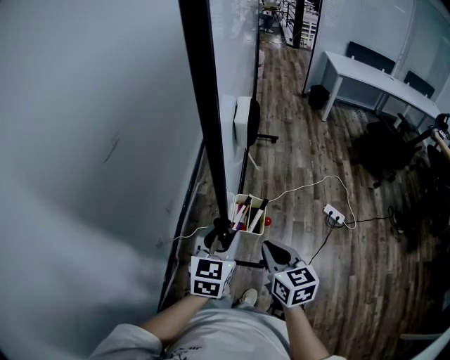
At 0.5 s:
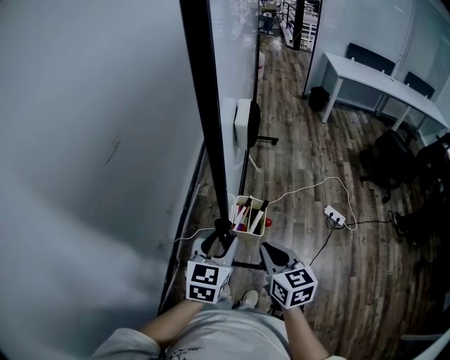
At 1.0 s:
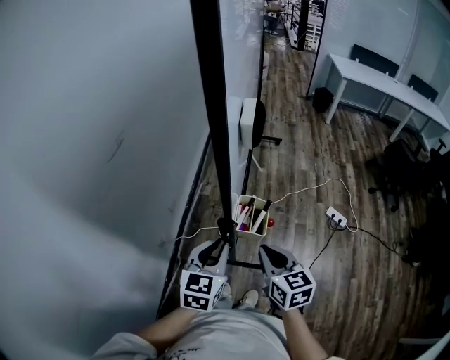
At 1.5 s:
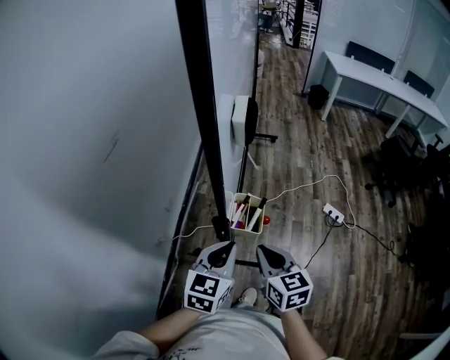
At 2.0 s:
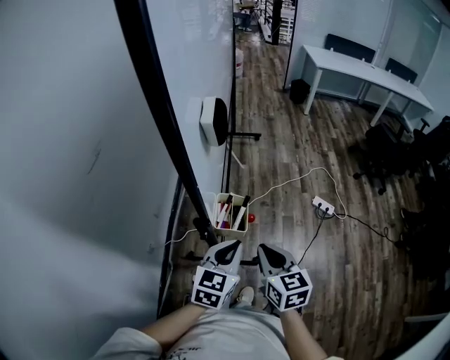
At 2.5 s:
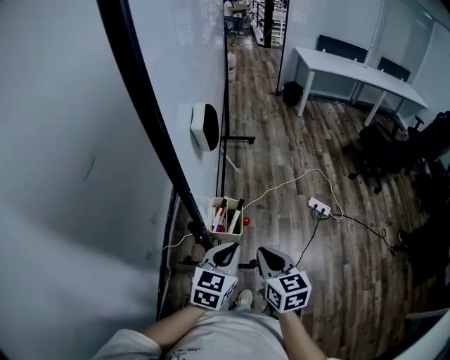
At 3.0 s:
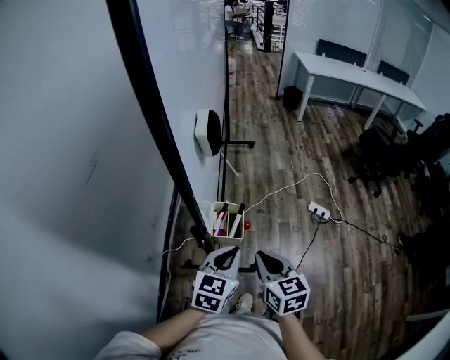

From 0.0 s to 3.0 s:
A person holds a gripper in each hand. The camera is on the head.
From 0.0 s to 1.5 s: The left gripper ends up approximately 5 cm from where it was, and closes.
From 1.5 s to 3.0 s: The left gripper shifts some 5 cm to the right.

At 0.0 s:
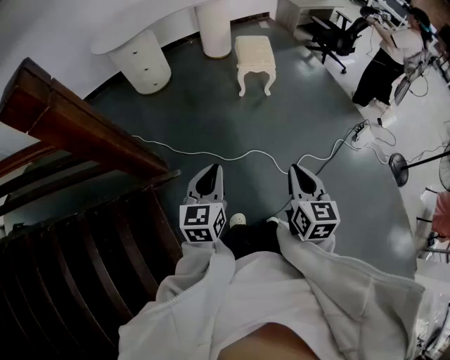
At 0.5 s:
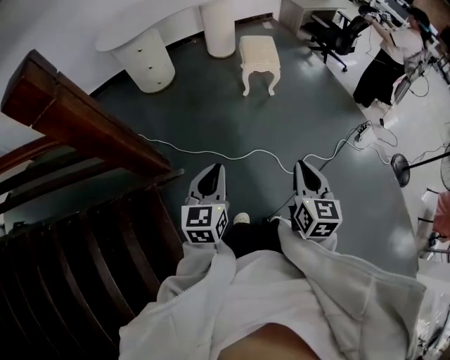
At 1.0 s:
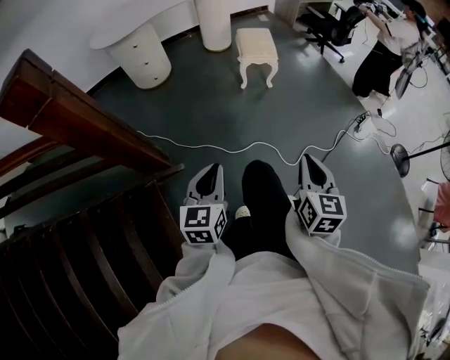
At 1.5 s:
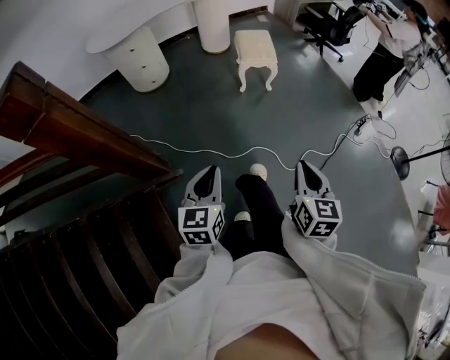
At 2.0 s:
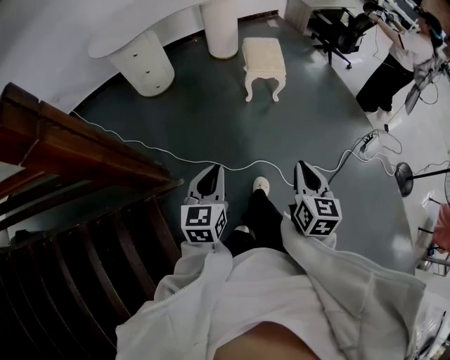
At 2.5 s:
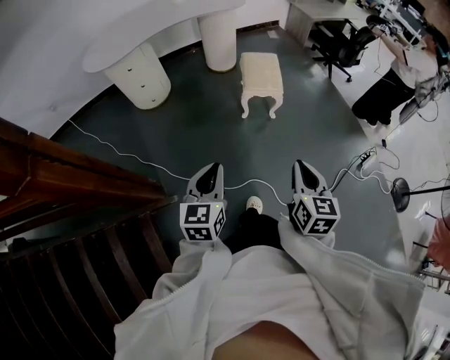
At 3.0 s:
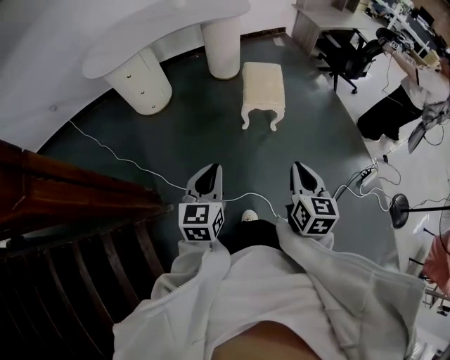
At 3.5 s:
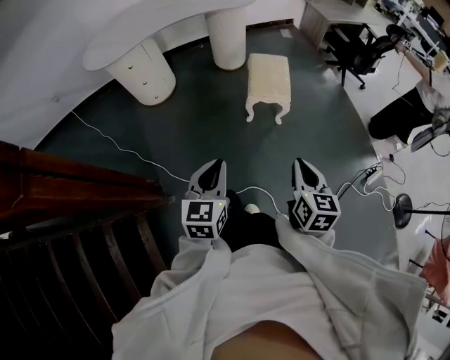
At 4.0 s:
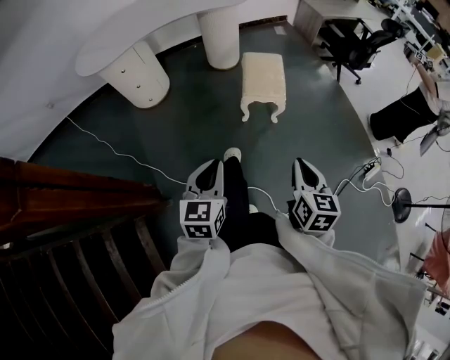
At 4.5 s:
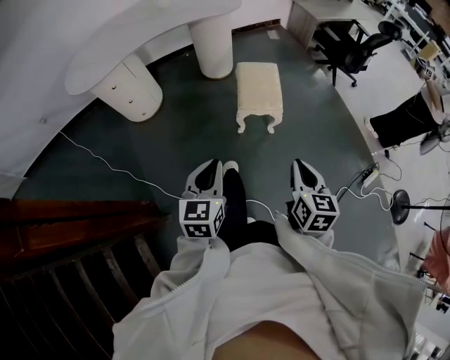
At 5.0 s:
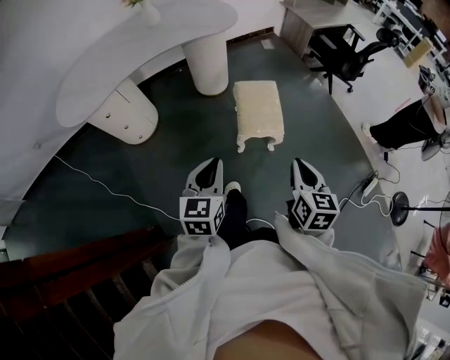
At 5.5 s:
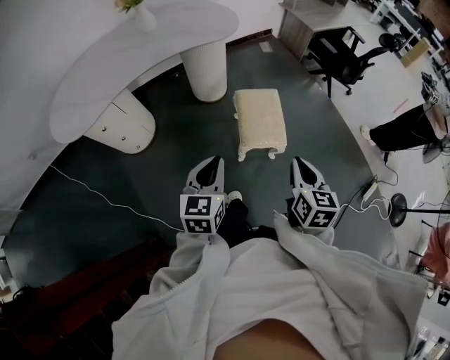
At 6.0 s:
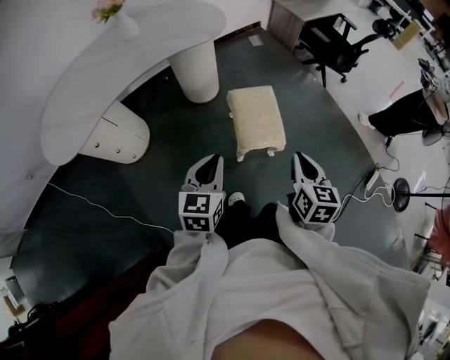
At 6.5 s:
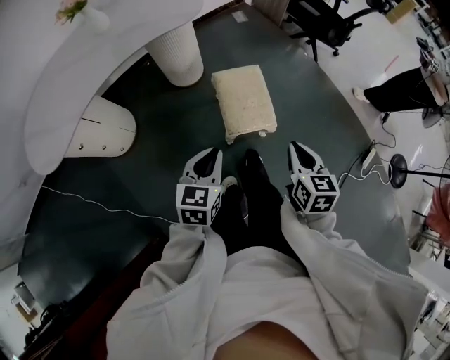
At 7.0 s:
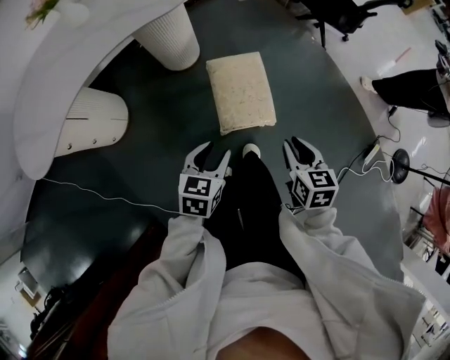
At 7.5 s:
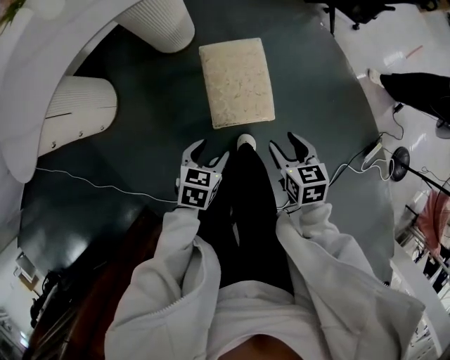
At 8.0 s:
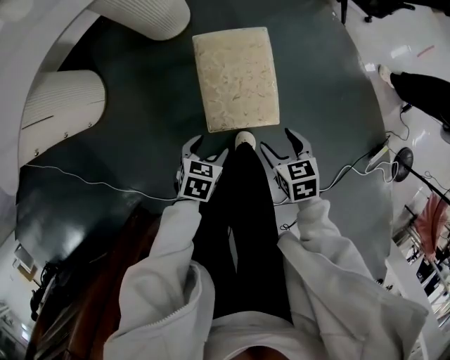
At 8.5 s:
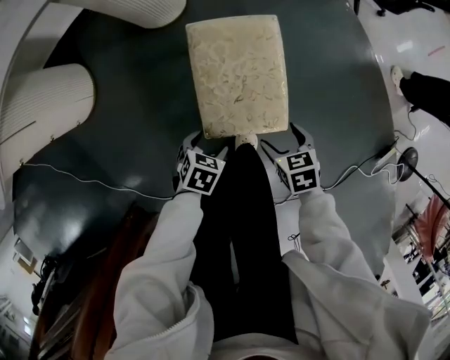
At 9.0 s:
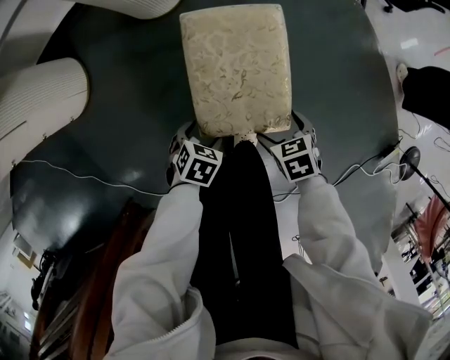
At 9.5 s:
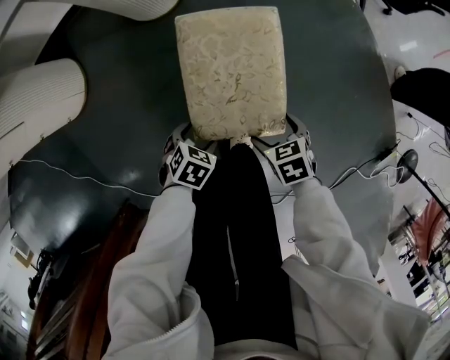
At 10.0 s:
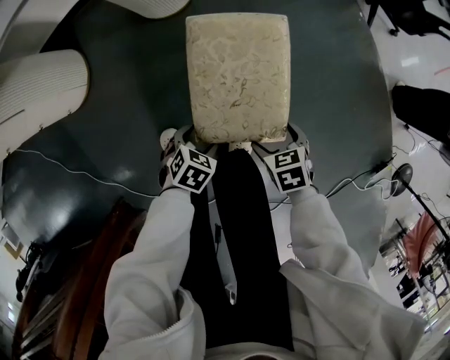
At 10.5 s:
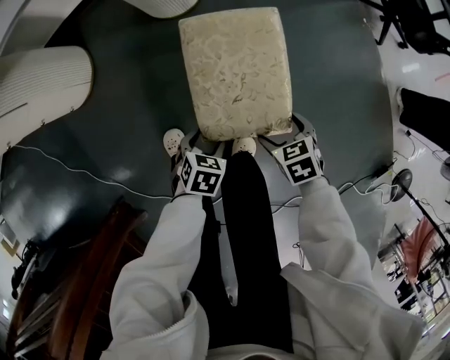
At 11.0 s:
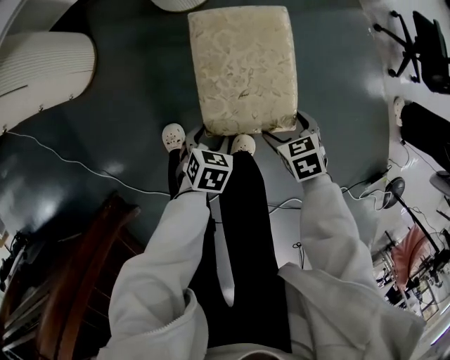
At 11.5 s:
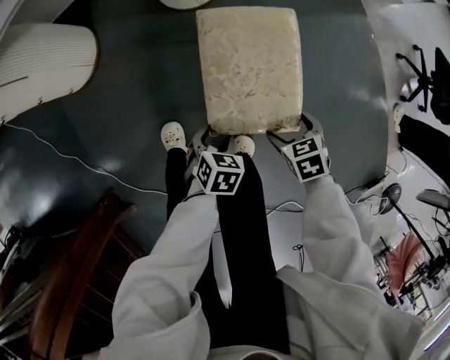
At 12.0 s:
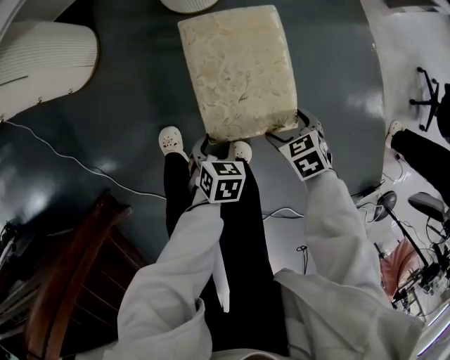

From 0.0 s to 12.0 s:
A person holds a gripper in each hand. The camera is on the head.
From 0.0 s to 2.0 s: Both grippers travel together forward, roughly 10 cm.
From 2.0 s to 4.0 s: The grippers both shift forward by about 25 cm.
From 4.0 s to 6.0 s: The grippers both shift forward by roughly 35 cm.
From 6.0 s to 8.0 s: The left gripper heads downward, covering roughly 35 cm, points its fingers some 40 degrees further downward, and opens, while the right gripper shifts about 35 cm downward and forward, rotates approximately 40 degrees, and opens.
From 8.0 s to 10.0 s: The grippers both shift downward by about 15 cm.
From 10.0 s to 12.0 s: The left gripper changes its angle by approximately 30 degrees. Meanwhile the right gripper ends up about 5 cm from where it was, and turns by about 20 degrees.

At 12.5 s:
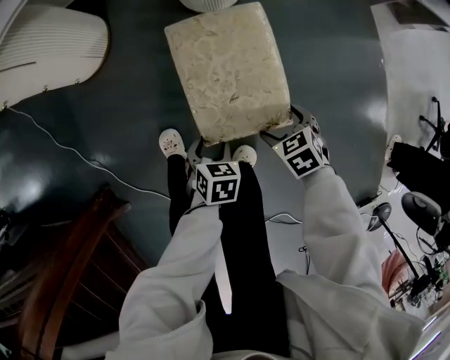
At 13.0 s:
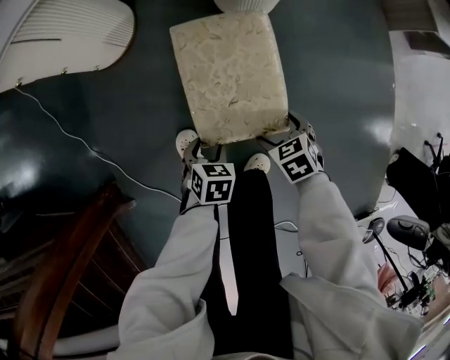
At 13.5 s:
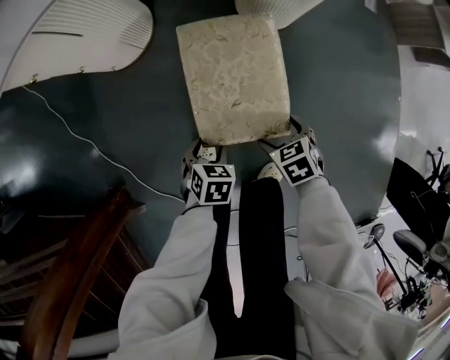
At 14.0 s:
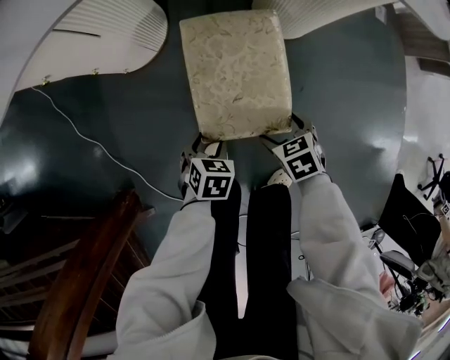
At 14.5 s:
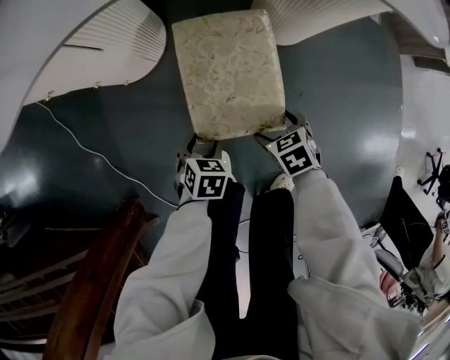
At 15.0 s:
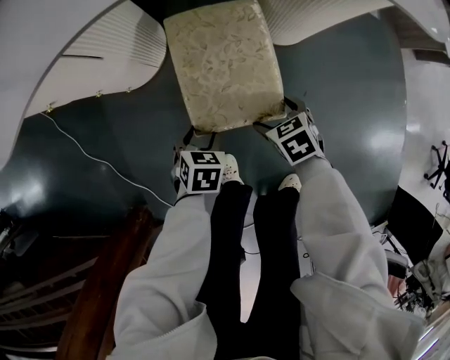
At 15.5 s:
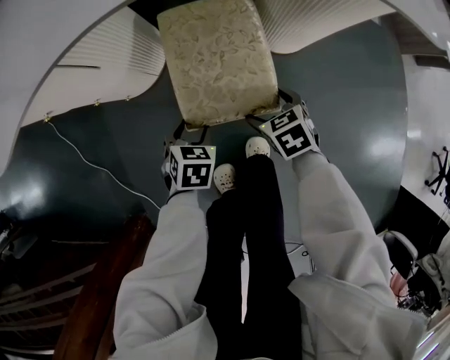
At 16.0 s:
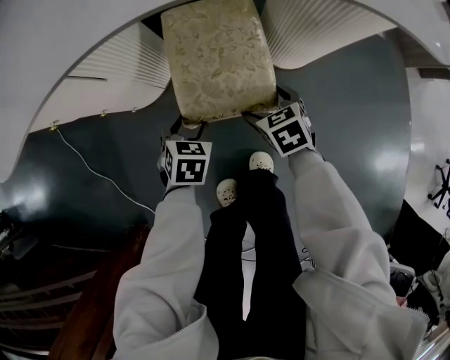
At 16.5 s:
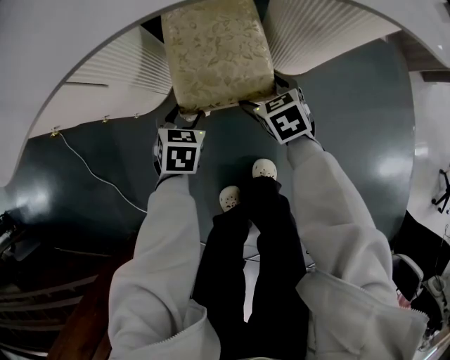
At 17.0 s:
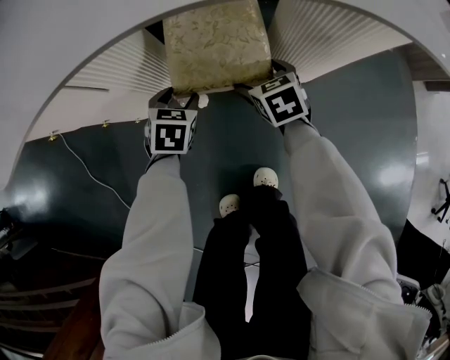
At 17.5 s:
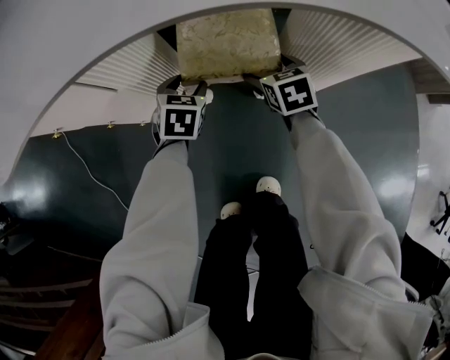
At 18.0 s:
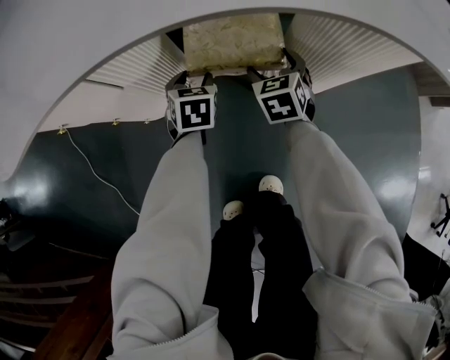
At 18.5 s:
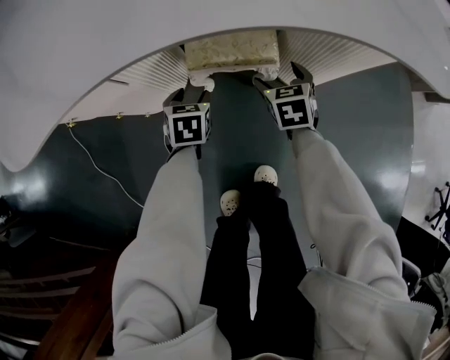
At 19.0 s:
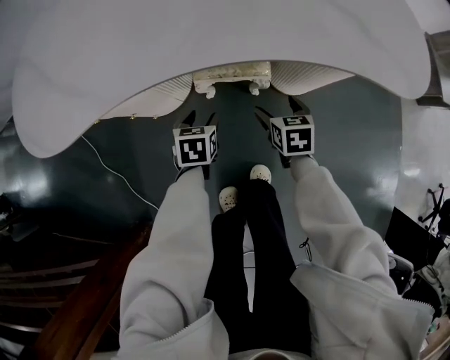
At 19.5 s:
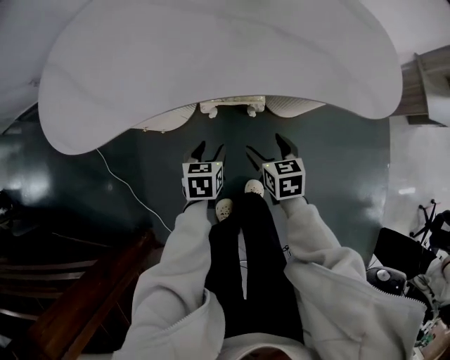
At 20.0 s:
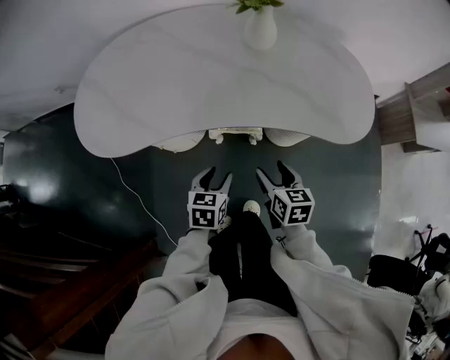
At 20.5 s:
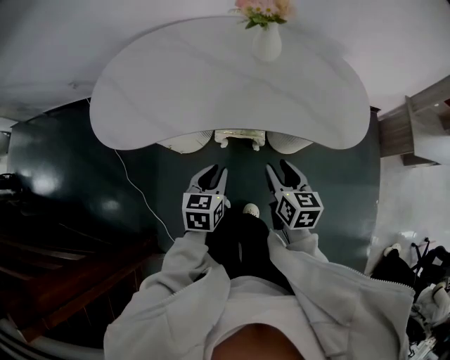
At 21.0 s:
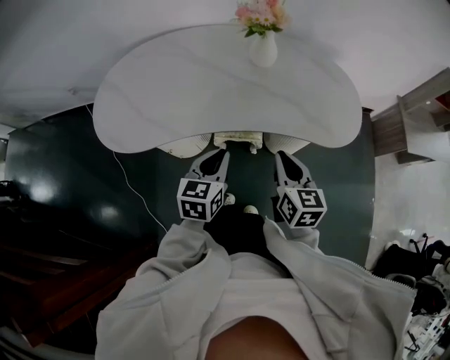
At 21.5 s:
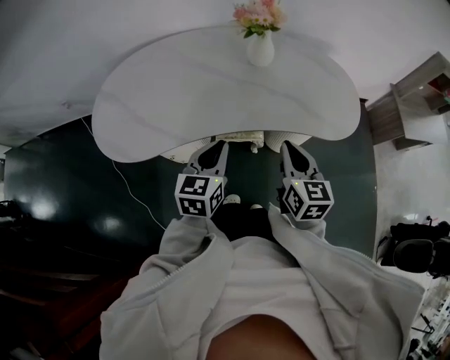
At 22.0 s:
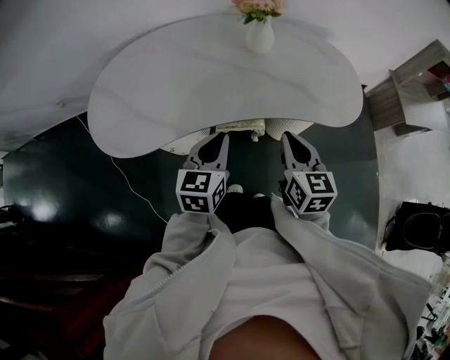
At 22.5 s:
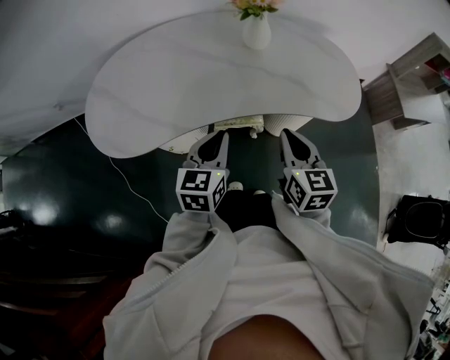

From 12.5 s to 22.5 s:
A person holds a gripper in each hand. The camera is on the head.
From 12.5 s to 14.5 s: The grippers both shift to the left and forward by about 30 cm.
From 14.5 s to 16.5 s: Both grippers move forward, some 20 cm.
From 16.5 s to 18.5 s: The right gripper goes some 10 cm forward and upward. Meanwhile the left gripper goes about 5 cm forward.
From 18.5 s to 20.5 s: Both grippers travel together upward, some 35 cm. The right gripper changes its angle by some 30 degrees, and closes. The left gripper closes its fingers.
From 20.5 s to 22.5 s: The two grippers go approximately 10 cm upward.

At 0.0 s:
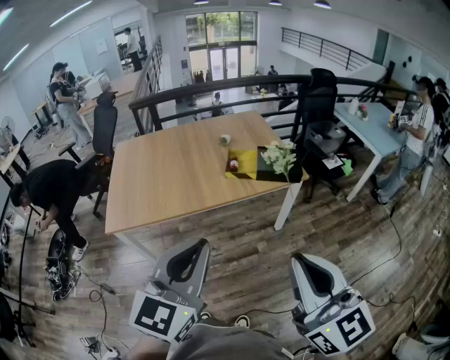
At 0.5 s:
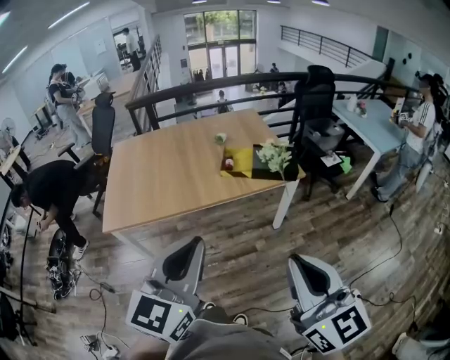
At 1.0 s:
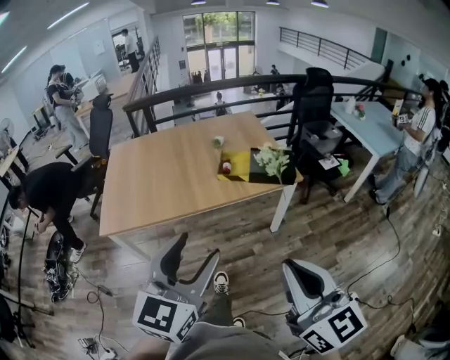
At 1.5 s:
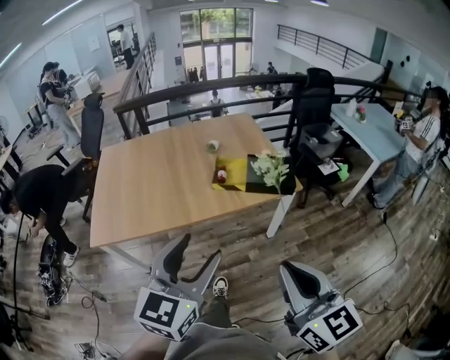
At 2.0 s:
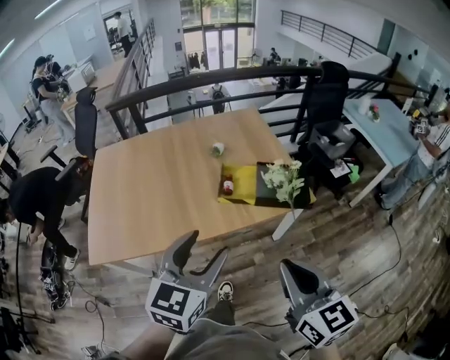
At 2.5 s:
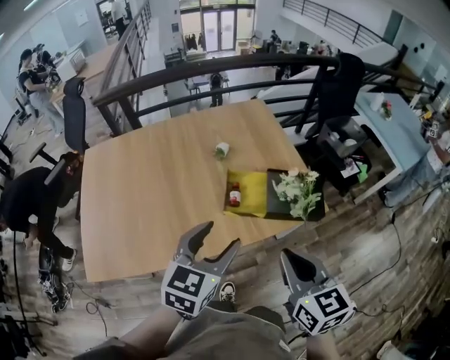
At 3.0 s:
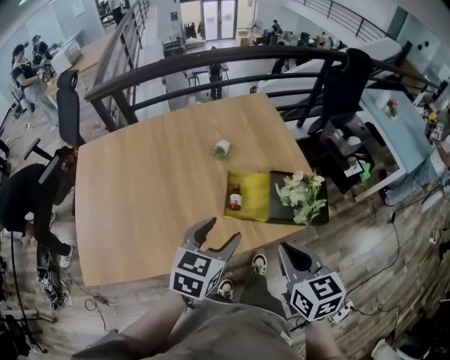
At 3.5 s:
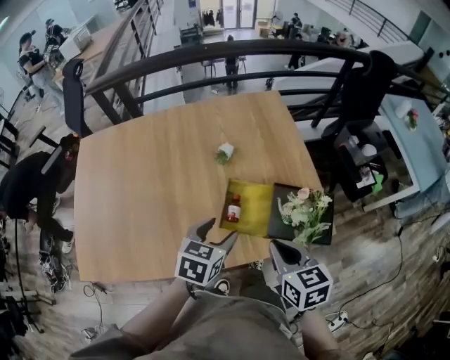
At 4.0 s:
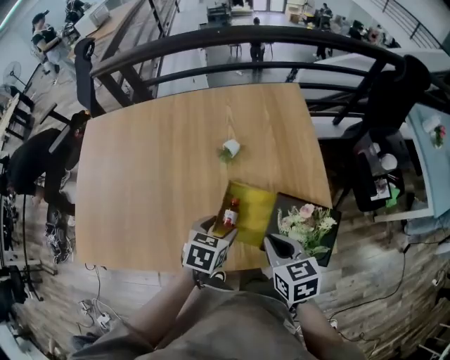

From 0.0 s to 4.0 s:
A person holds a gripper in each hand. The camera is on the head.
From 0.0 s to 2.0 s: Both grippers travel together forward, roughly 25 cm. The left gripper opens up.
From 2.0 s to 4.0 s: The grippers both shift forward and downward by roughly 40 cm. The left gripper points its fingers approximately 40 degrees further downward, while the right gripper turns by about 30 degrees.
